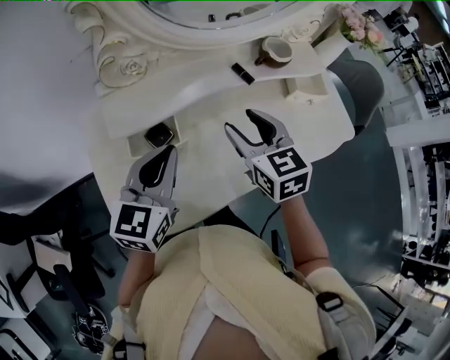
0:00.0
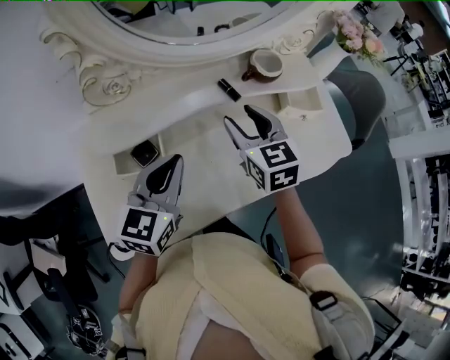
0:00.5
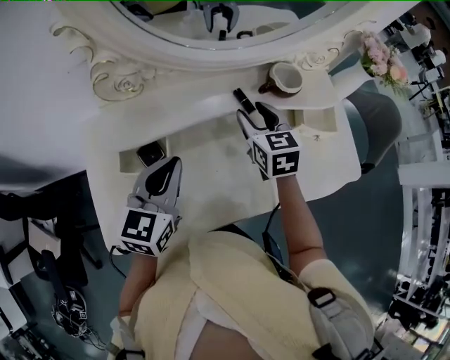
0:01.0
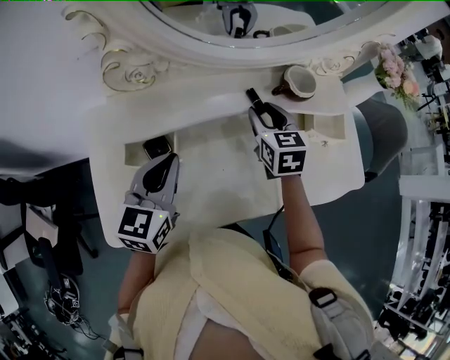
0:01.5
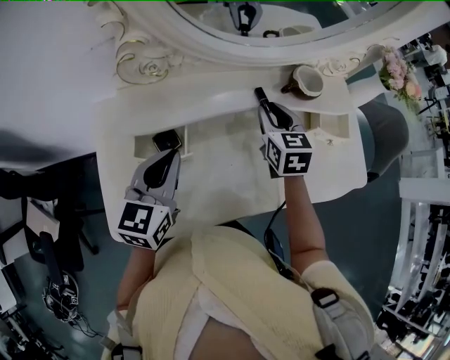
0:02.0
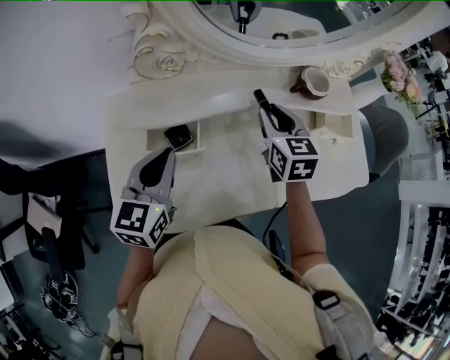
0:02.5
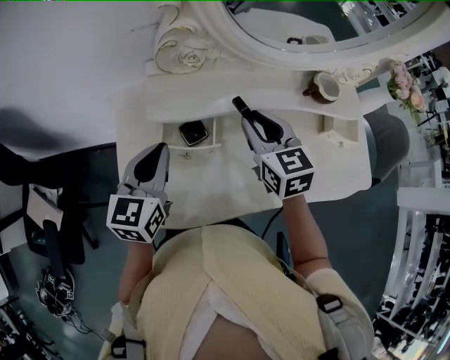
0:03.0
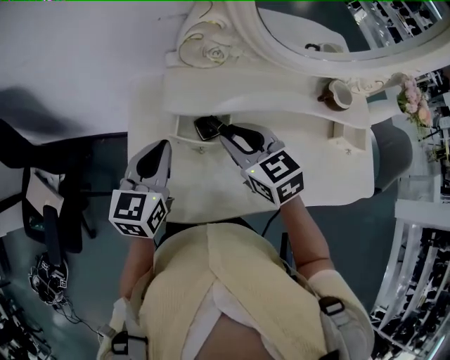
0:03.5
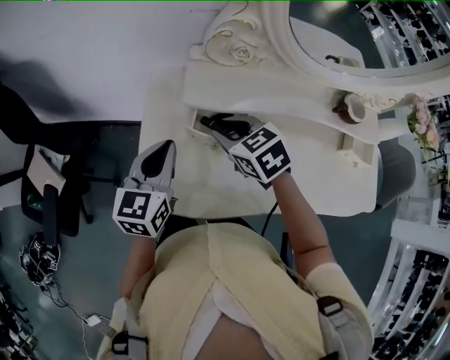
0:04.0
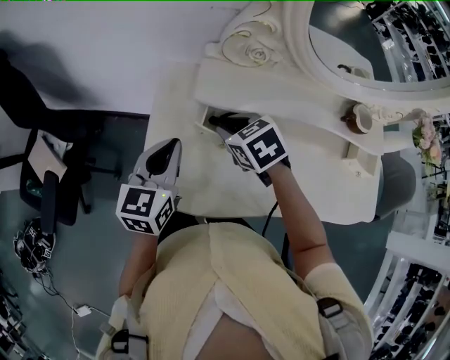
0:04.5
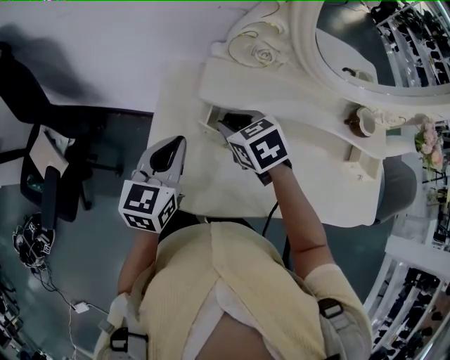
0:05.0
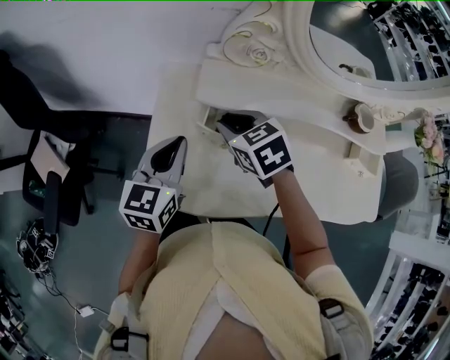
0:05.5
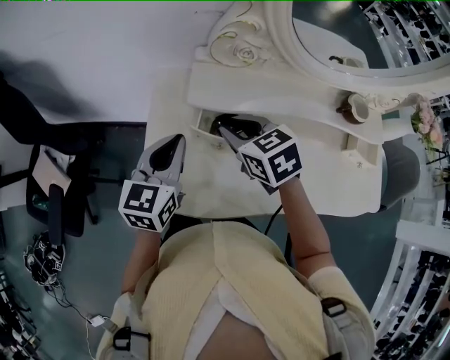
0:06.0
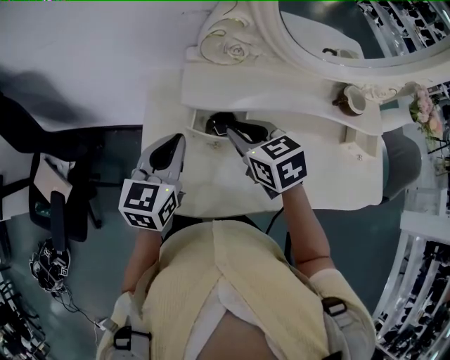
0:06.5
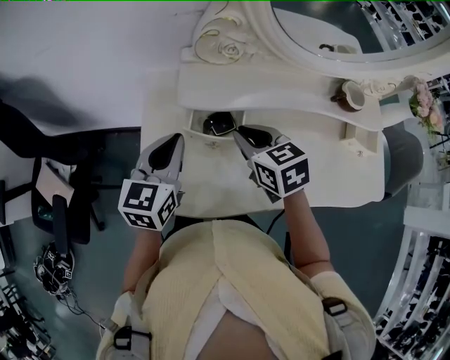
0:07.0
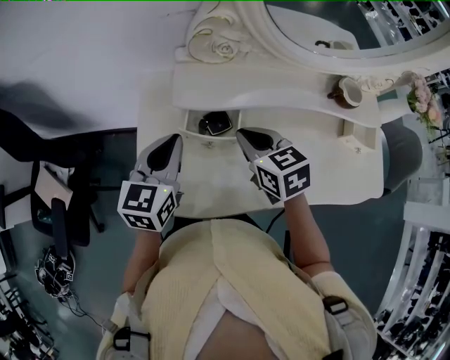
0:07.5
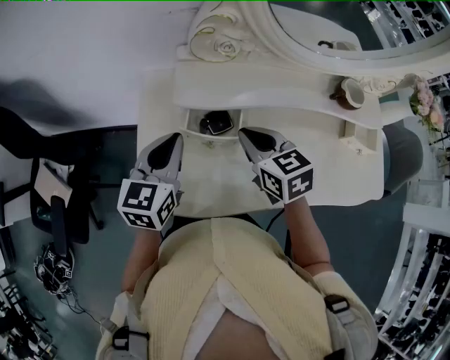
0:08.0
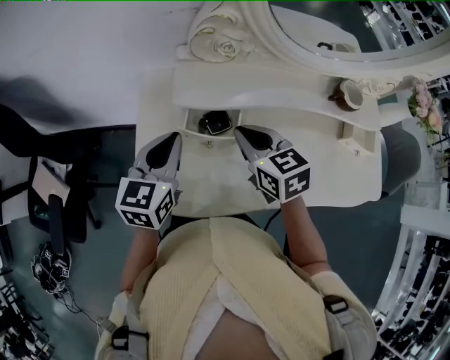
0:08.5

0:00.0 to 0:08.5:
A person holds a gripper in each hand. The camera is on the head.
0:00.0 to 0:02.0: The right gripper is displaced forward, downward and to the right by about 15 cm, and closes.
0:02.0 to 0:04.0: The right gripper moves approximately 30 cm, and turns by approximately 50 degrees. Meanwhile the left gripper shifts by approximately 15 cm.
0:04.0 to 0:06.5: There are only small adjustments of the grippers.
0:06.5 to 0:08.5: The grippers stay close to where they were, moving slightly.

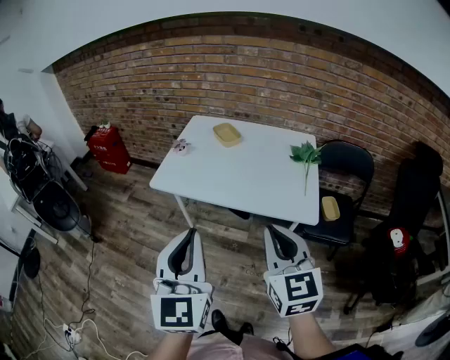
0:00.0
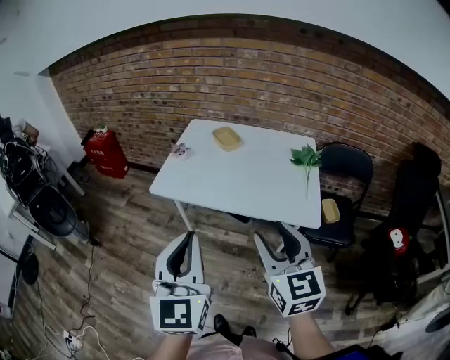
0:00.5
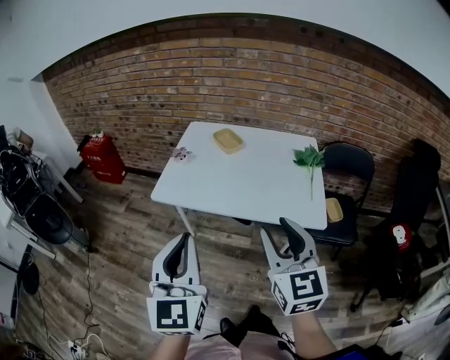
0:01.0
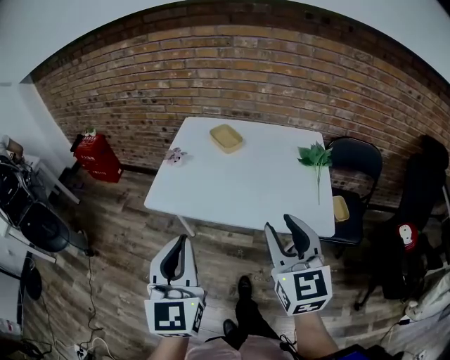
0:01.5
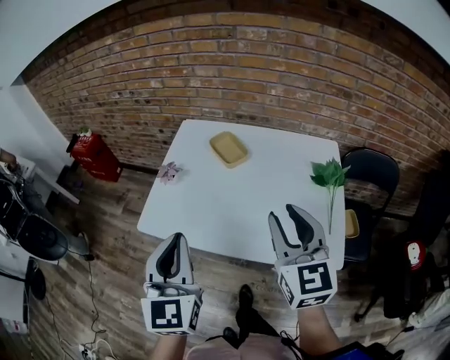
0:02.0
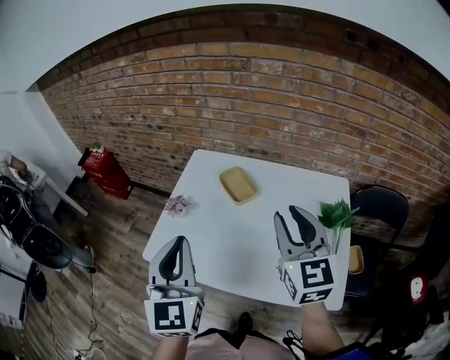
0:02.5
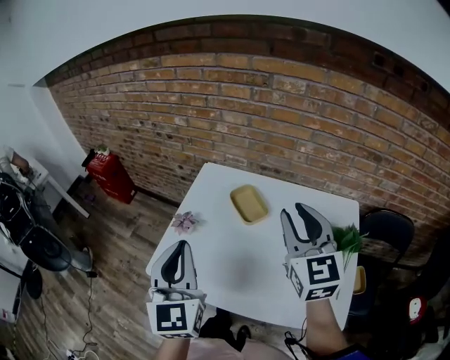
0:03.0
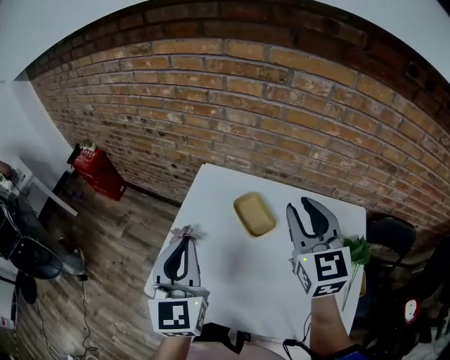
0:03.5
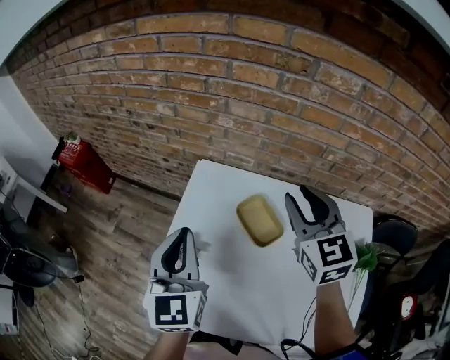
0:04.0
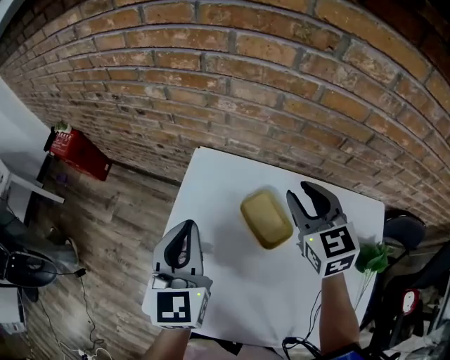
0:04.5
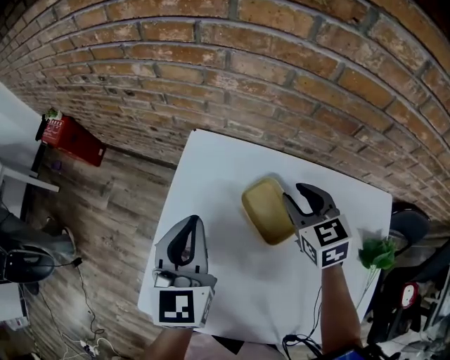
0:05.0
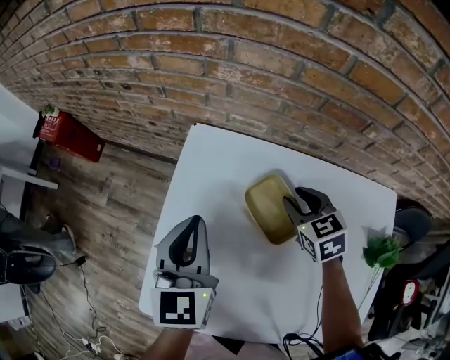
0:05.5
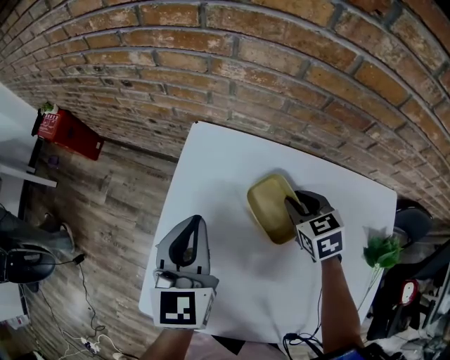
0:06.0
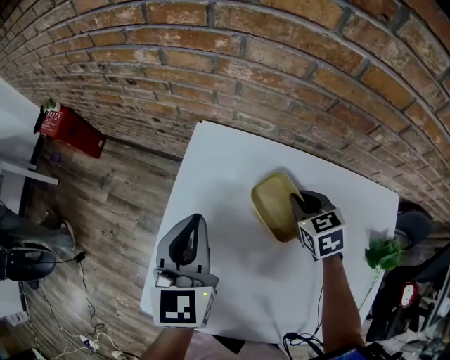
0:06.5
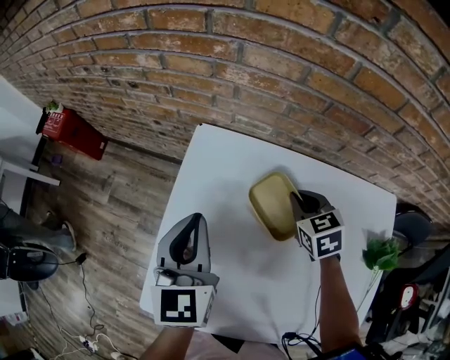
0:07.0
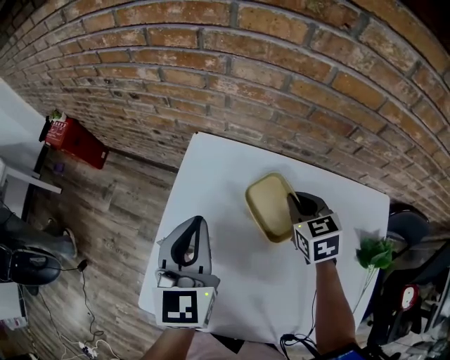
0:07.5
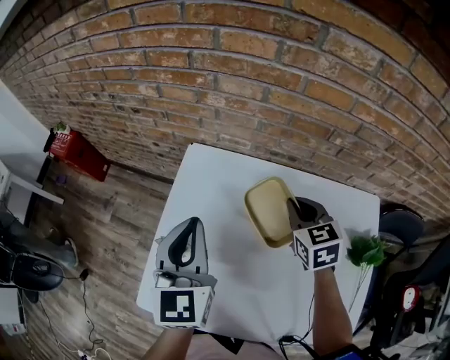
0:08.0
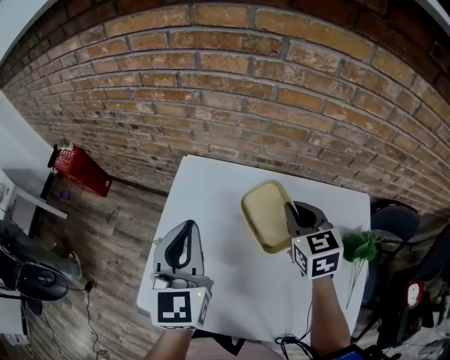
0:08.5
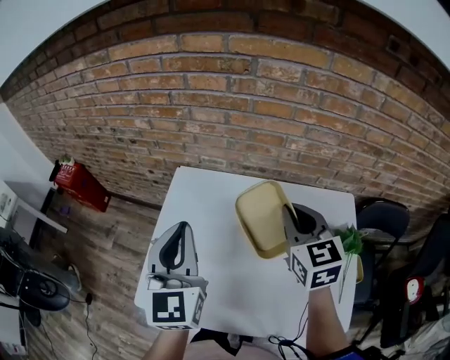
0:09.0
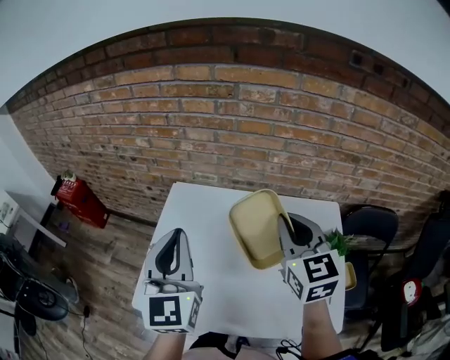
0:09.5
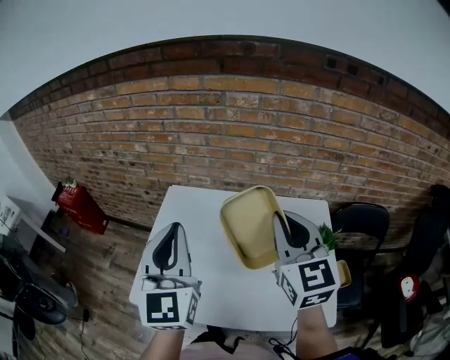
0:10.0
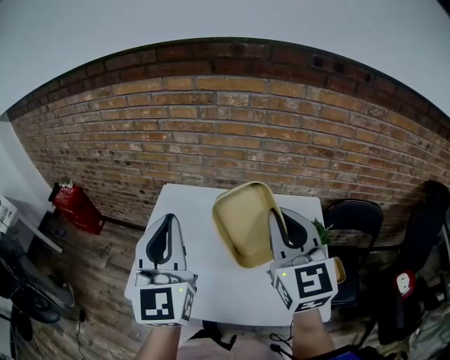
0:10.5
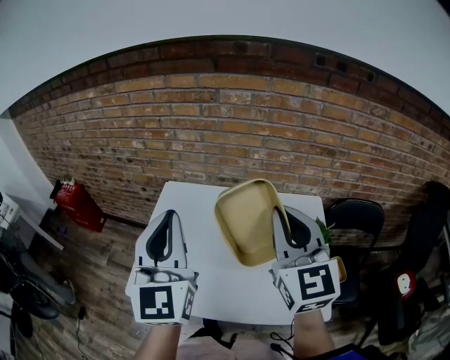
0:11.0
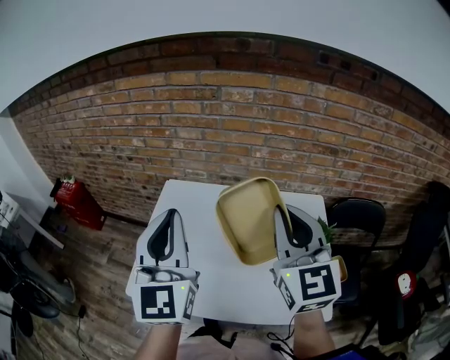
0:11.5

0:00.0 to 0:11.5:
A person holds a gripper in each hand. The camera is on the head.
0:00.0 to 0:02.0: Both grippers move forward, roughly 25 cm. The right gripper opens its fingers.
0:02.0 to 0:04.0: The grippers both shift forward by roughly 35 cm.
0:04.0 to 0:06.0: The left gripper heads downward and forward, covering roughly 10 cm. The right gripper shifts approximately 25 cm downward, and tips its fingers downward by approximately 30 degrees.
0:06.0 to 0:07.5: The right gripper is displaced upward by roughly 5 cm, and closes its fingers.
0:07.5 to 0:09.5: Both grippers move upward and backward, some 25 cm. The right gripper tips its fingers upward by about 30 degrees.
0:09.5 to 0:11.5: The left gripper moves upward and backward, about 10 cm. Meanwhile the right gripper shifts about 15 cm backward and upward.

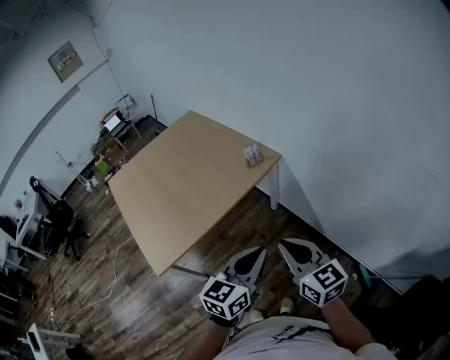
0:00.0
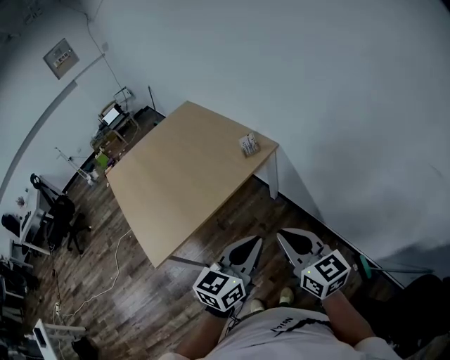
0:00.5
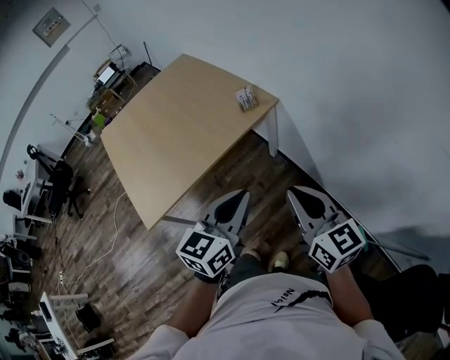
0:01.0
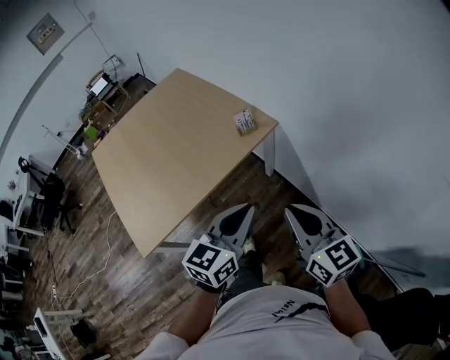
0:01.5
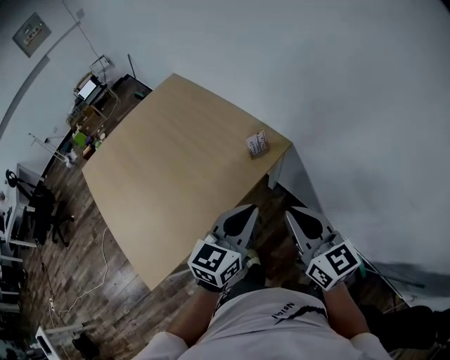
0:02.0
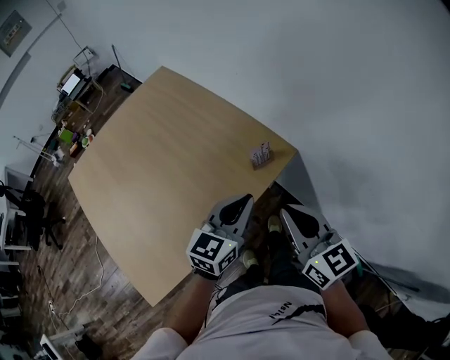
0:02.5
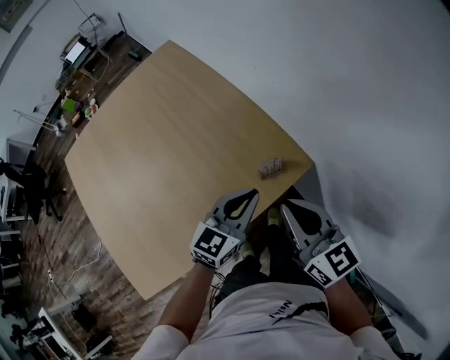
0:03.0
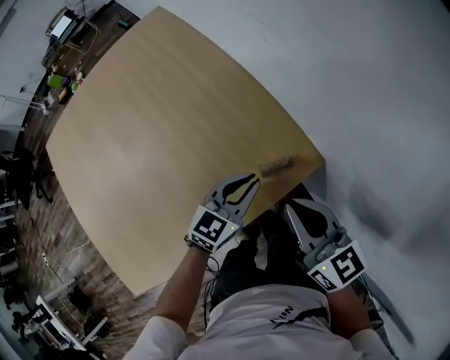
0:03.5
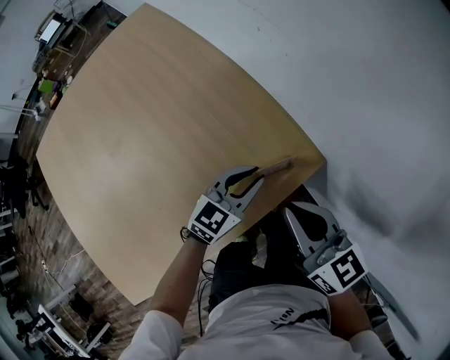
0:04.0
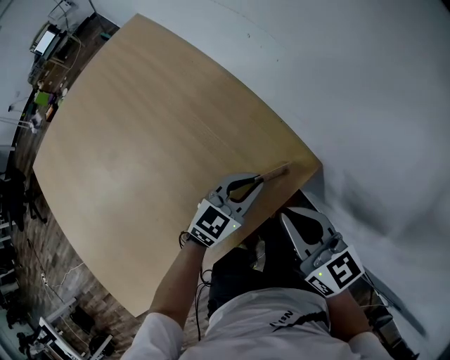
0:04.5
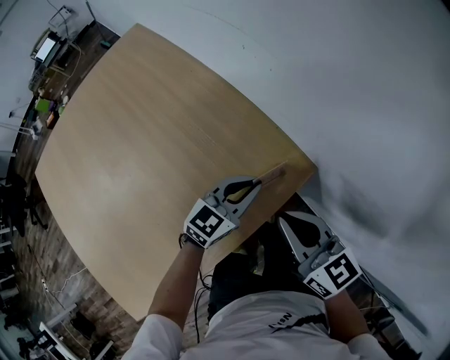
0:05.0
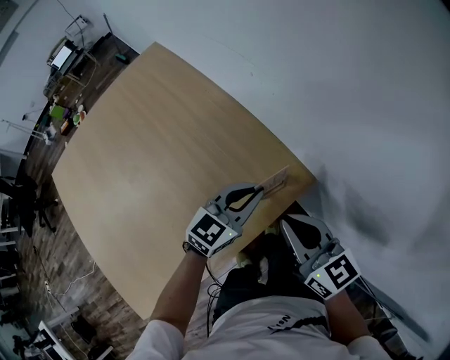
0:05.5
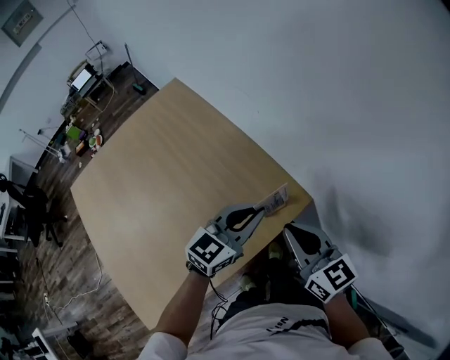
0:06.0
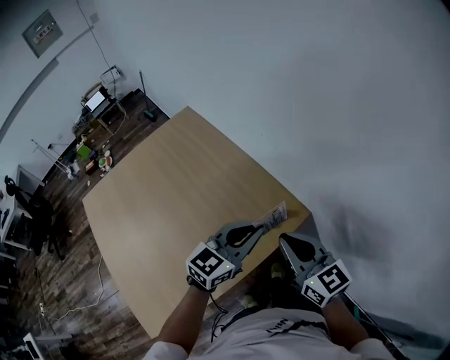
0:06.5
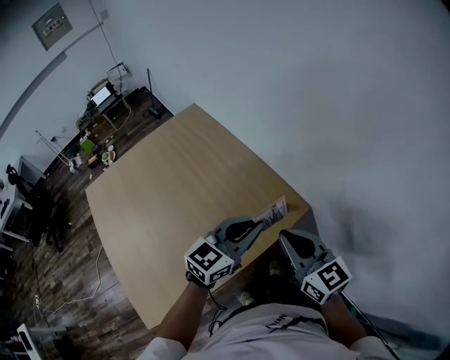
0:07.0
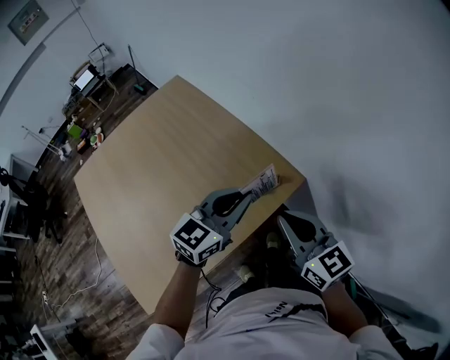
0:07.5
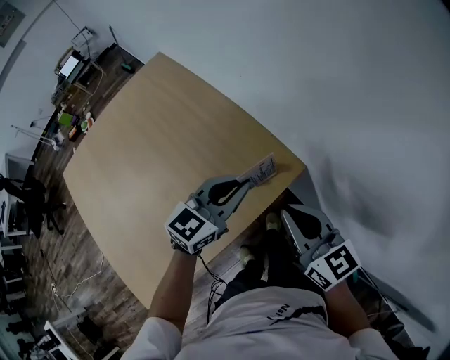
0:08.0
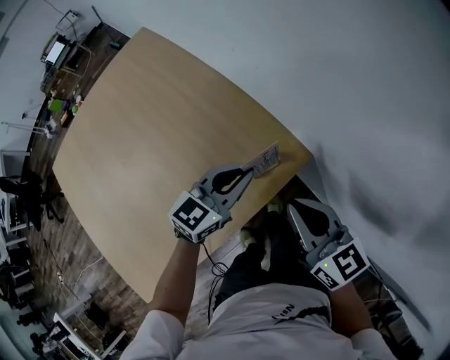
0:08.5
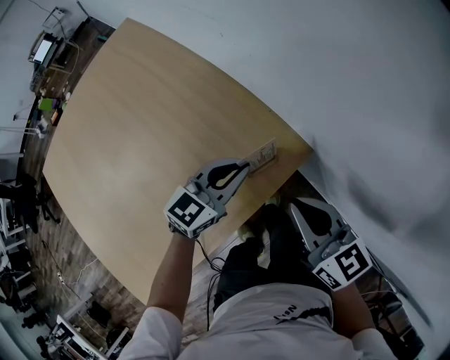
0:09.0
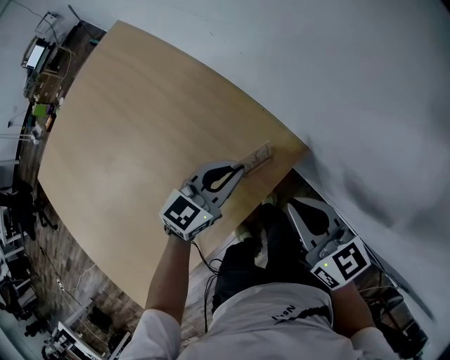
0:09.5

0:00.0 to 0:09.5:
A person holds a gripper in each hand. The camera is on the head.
0:00.0 to 0:02.0: Both grippers move forward, approximately 25 cm.
0:02.0 to 0:04.0: Both grippers travel together forward and downward, approximately 40 cm.
0:04.0 to 0:05.5: The right gripper shifts some 5 cm upward, while the left gripper travels upward by approximately 10 cm.
0:05.5 to 0:07.5: Both grippers travel together upward and backward, about 15 cm.
0:07.5 to 0:09.5: The left gripper heads downward, covering about 25 cm, while the right gripper is displaced downward and forward by approximately 20 cm.
